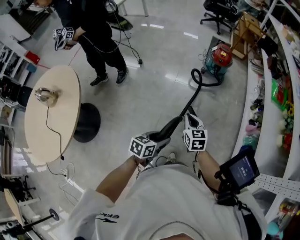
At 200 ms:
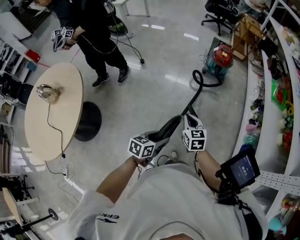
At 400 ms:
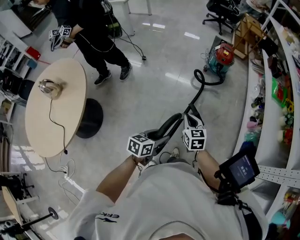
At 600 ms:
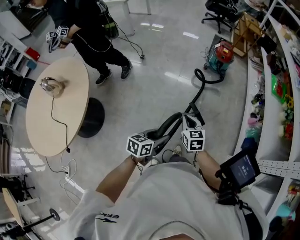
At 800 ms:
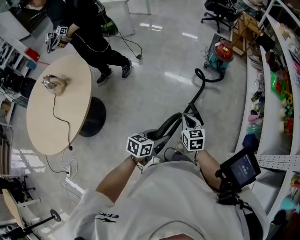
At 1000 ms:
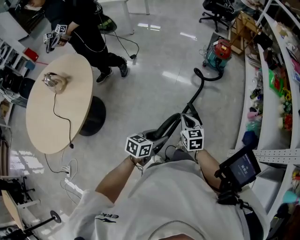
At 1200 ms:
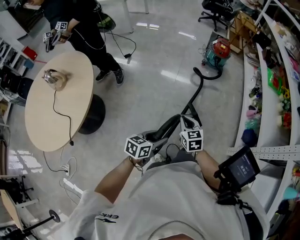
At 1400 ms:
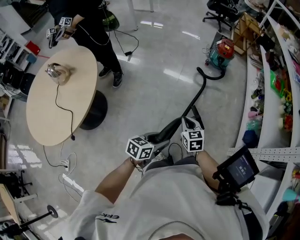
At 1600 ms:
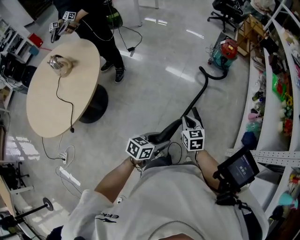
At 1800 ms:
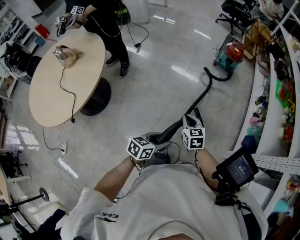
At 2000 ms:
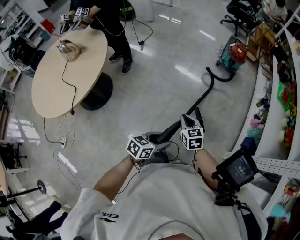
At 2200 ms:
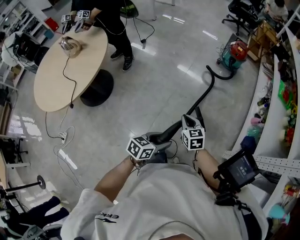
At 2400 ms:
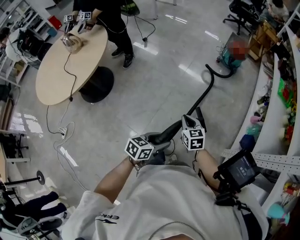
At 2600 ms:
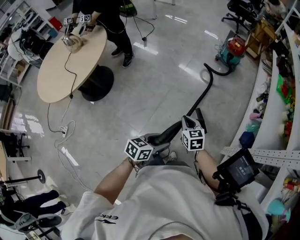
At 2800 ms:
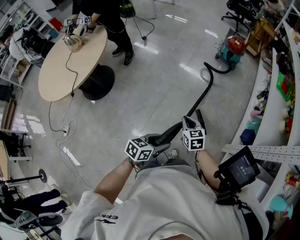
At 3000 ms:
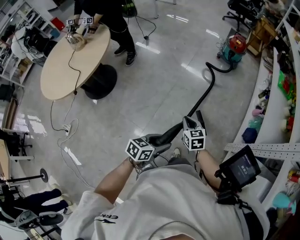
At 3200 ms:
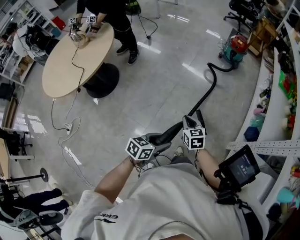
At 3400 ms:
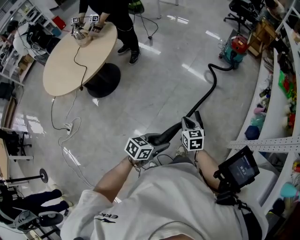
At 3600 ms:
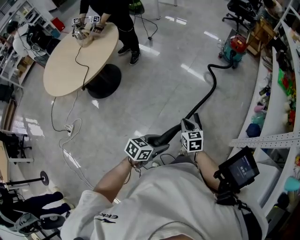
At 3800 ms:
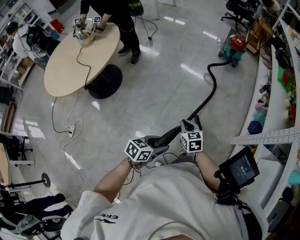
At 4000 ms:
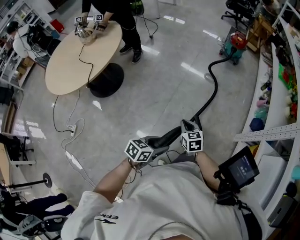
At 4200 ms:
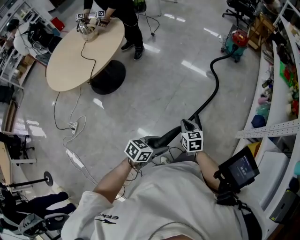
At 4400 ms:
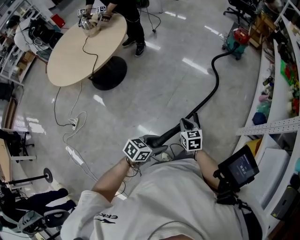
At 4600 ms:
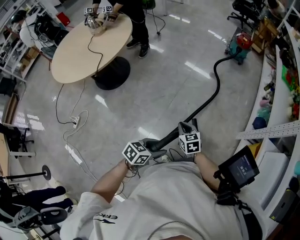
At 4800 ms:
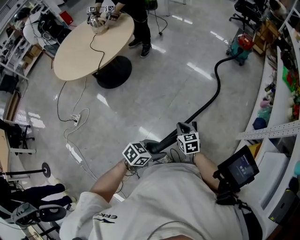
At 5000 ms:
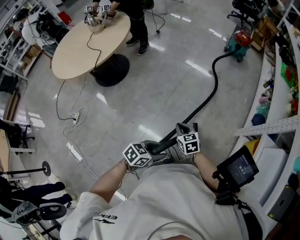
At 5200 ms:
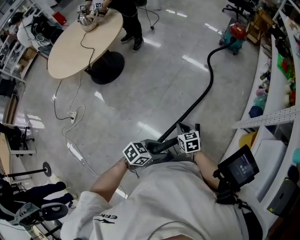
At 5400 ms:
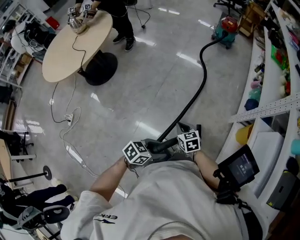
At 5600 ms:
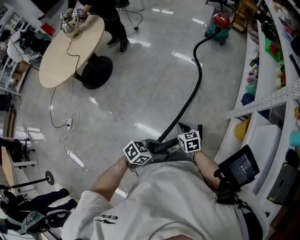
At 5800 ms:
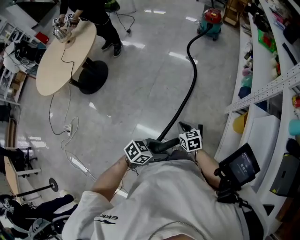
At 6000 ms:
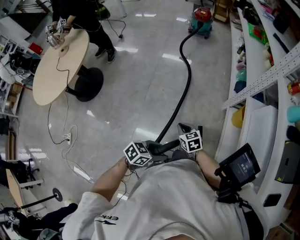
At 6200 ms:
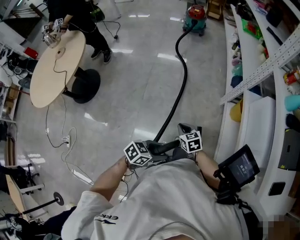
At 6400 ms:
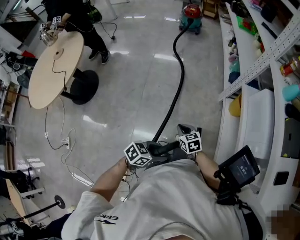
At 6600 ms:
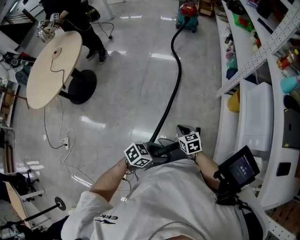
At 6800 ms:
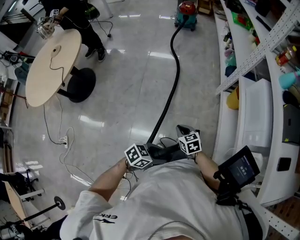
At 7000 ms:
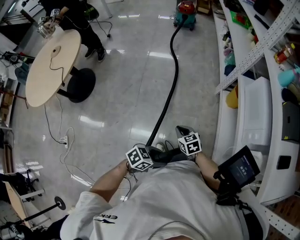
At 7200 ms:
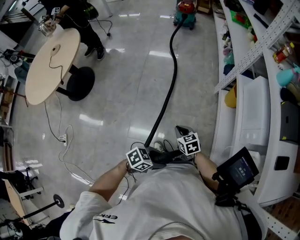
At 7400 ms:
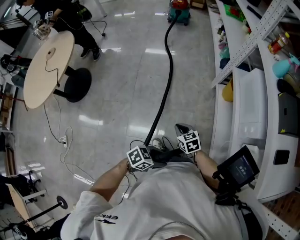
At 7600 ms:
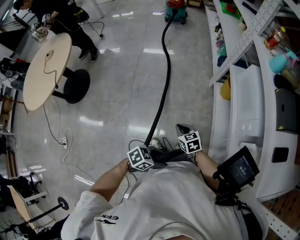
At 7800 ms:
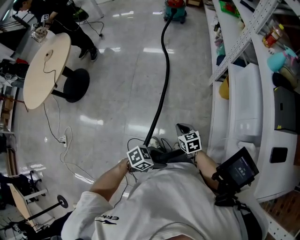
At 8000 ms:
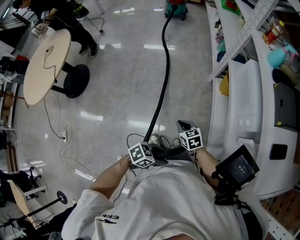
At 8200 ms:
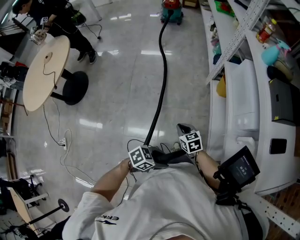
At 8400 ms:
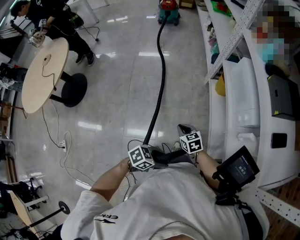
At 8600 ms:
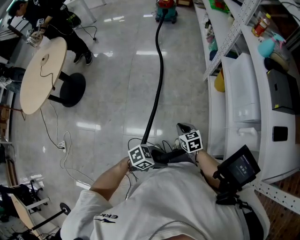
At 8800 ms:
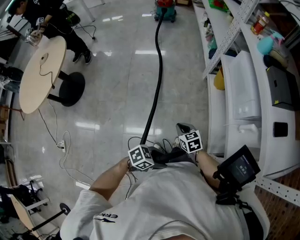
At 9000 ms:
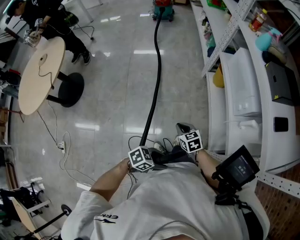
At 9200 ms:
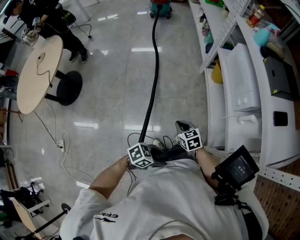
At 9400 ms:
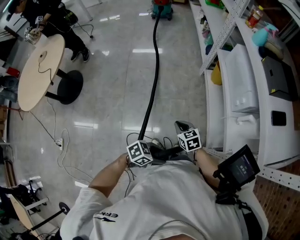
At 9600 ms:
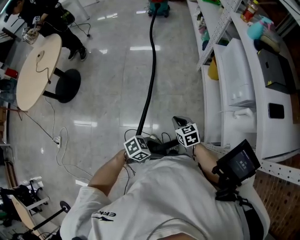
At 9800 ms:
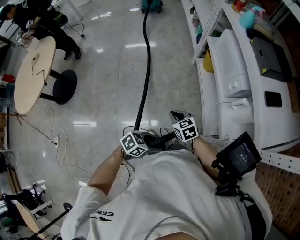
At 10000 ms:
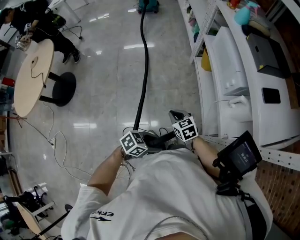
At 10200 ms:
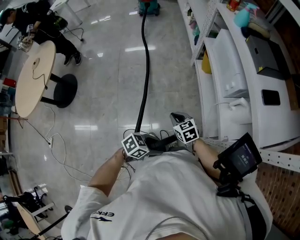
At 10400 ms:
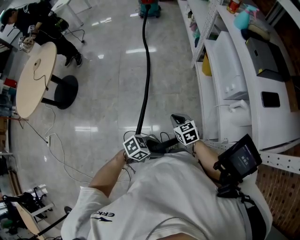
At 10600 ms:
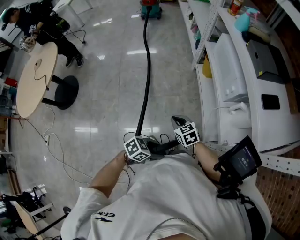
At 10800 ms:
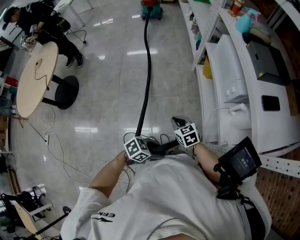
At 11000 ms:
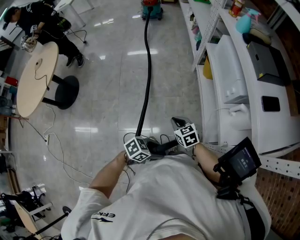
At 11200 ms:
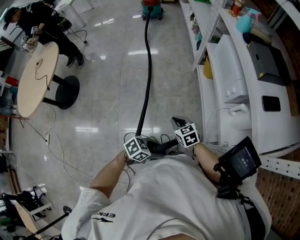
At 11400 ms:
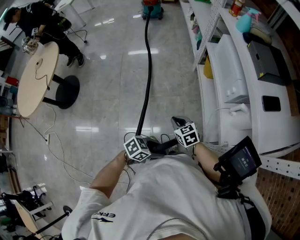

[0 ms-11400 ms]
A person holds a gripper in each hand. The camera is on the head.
0 ms to 1400 ms: Both grippers move backward, some 25 cm.
1400 ms to 2800 ms: Both grippers move to the right and backward, approximately 25 cm.
2800 ms to 4200 ms: The grippers both shift backward and to the left by some 25 cm.
4200 ms to 5600 ms: The two grippers go some 20 cm to the right and backward.
5600 ms to 7200 ms: The left gripper moves about 20 cm, and swivels about 30 degrees. The right gripper shifts by some 20 cm.
7200 ms to 8600 ms: The right gripper moves some 10 cm. The left gripper changes place by some 10 cm.
8600 ms to 10000 ms: The right gripper moves approximately 10 cm; the left gripper ends up about 5 cm from where it was.
10000 ms to 11400 ms: Both grippers stay about where they are.

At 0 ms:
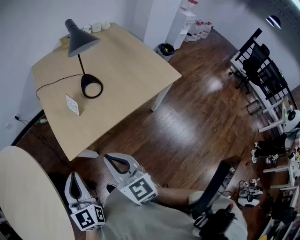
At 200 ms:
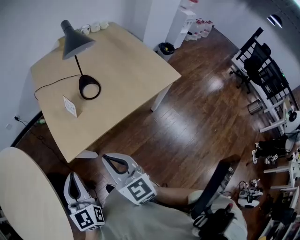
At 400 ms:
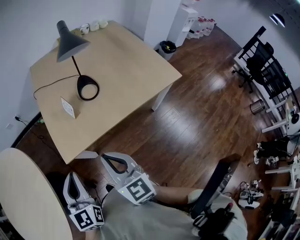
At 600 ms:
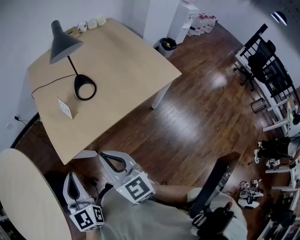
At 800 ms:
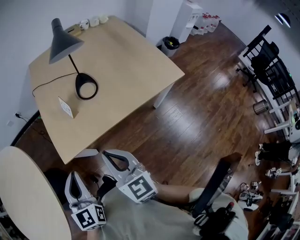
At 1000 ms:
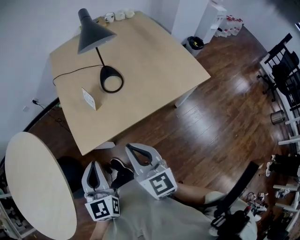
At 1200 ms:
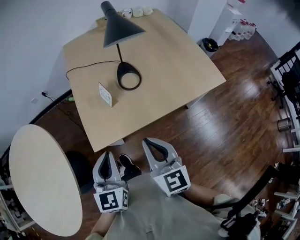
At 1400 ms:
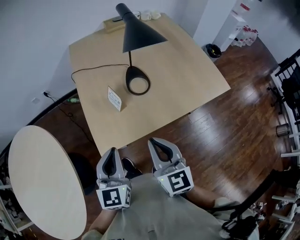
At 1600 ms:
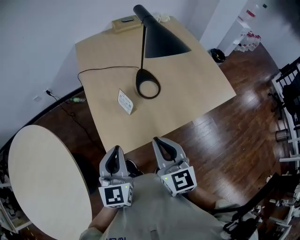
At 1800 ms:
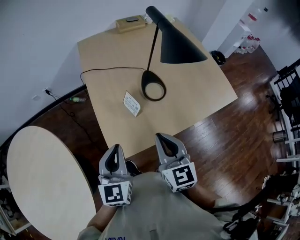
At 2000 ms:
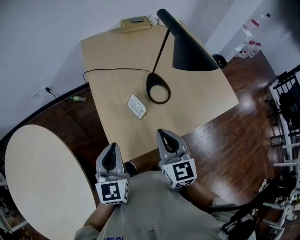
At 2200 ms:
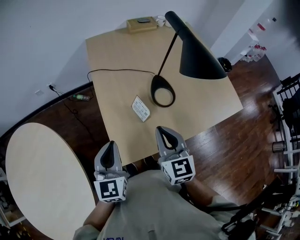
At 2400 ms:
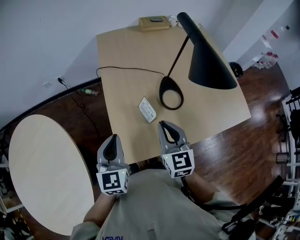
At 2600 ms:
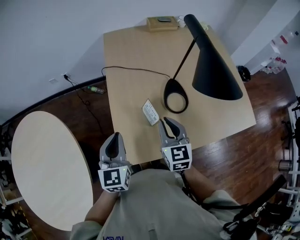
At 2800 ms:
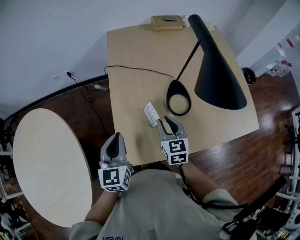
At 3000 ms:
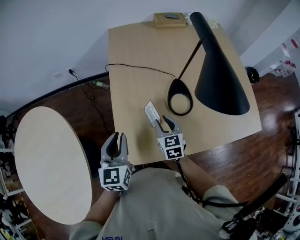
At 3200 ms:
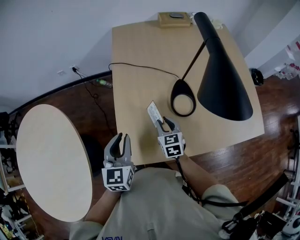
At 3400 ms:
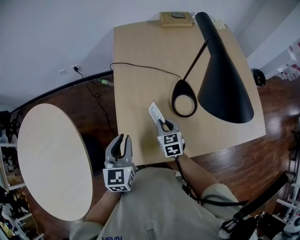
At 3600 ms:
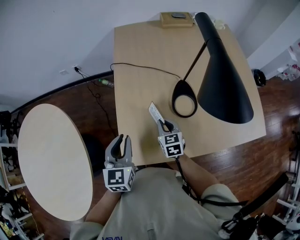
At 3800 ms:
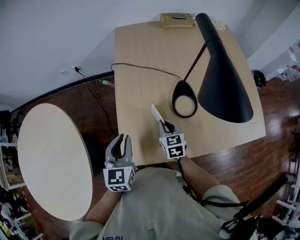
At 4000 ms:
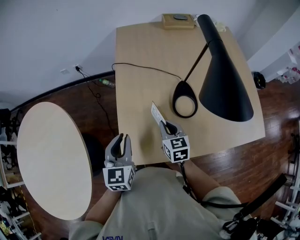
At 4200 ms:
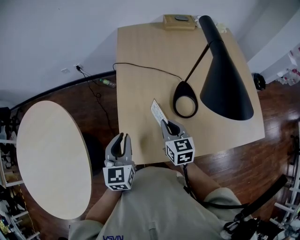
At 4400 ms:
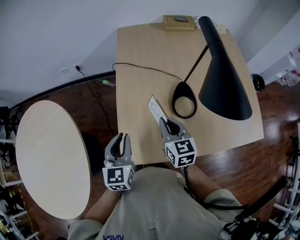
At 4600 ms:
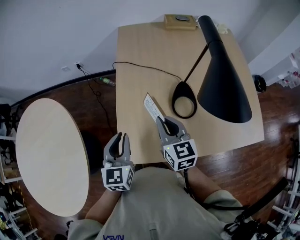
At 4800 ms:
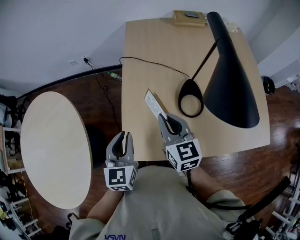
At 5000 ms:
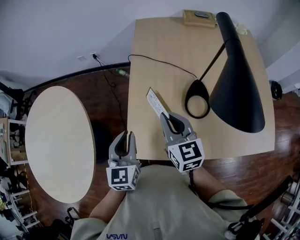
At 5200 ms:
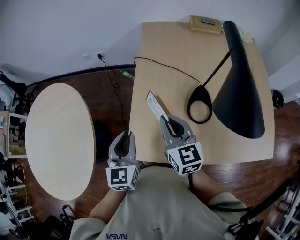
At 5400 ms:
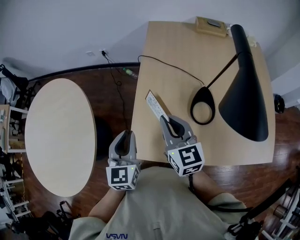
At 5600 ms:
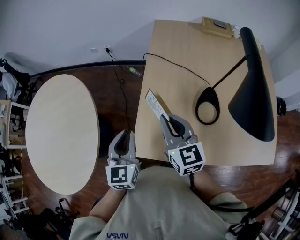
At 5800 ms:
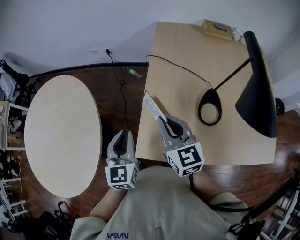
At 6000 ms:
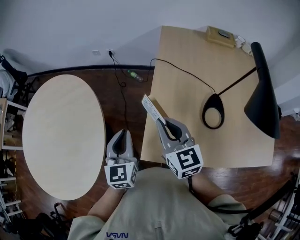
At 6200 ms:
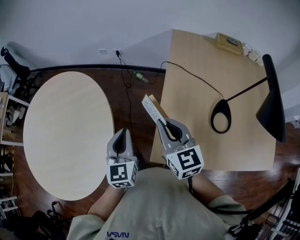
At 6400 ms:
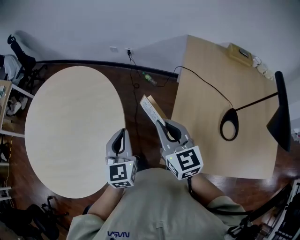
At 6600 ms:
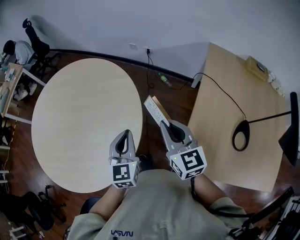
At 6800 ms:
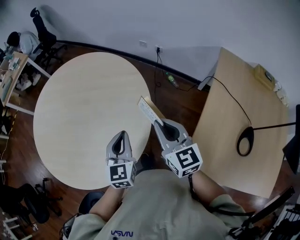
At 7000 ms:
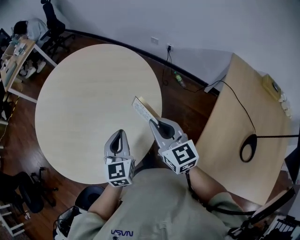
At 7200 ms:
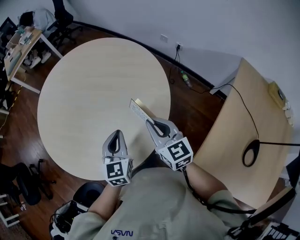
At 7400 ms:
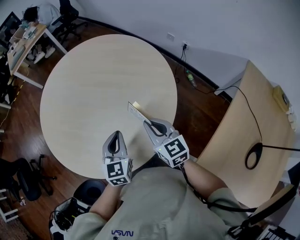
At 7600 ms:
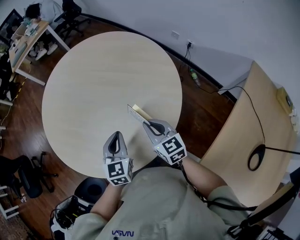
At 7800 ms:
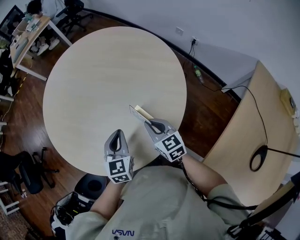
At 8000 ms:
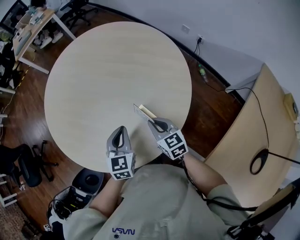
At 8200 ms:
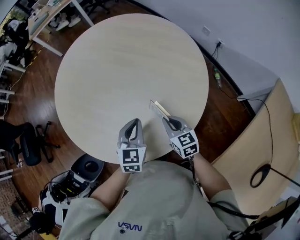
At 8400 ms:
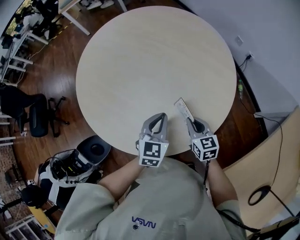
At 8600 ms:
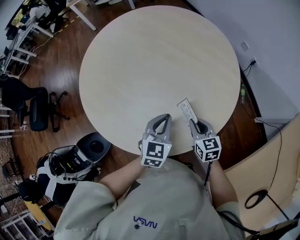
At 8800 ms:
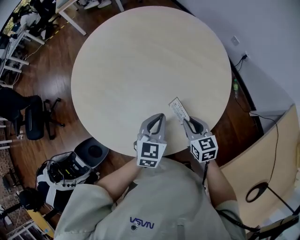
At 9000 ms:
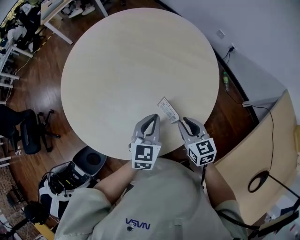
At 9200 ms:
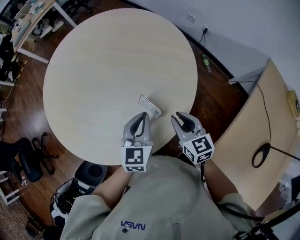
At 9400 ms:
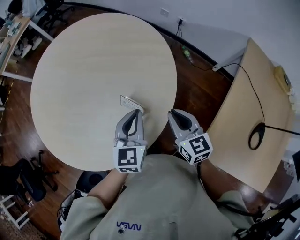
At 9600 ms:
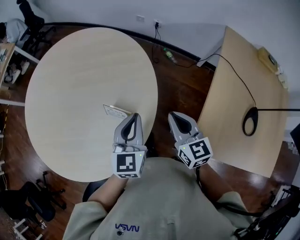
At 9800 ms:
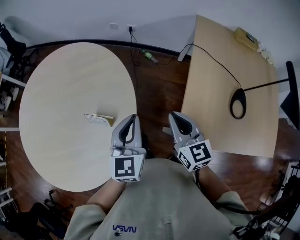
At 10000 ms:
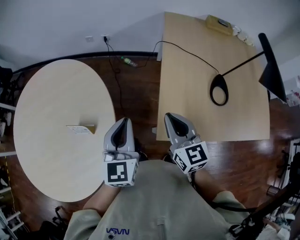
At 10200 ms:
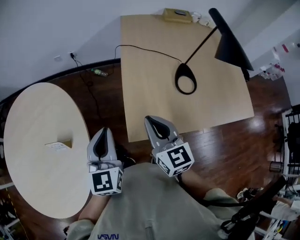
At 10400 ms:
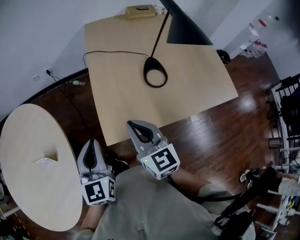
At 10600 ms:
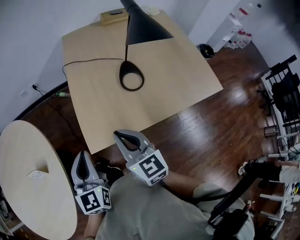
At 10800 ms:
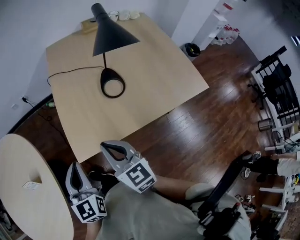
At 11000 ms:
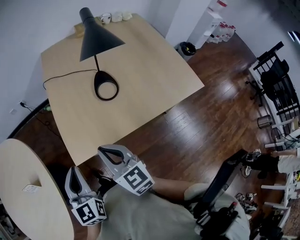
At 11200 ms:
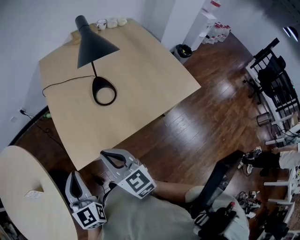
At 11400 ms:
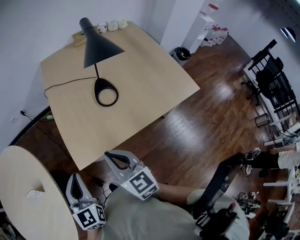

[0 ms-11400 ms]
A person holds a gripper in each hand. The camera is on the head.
0 ms to 1400 ms: Both grippers travel together forward, approximately 10 cm.
1400 ms to 2800 ms: The left gripper moves forward and to the left, roughly 20 cm, while the right gripper moves forward and downward, some 25 cm, and opens.
2800 ms to 4200 ms: The right gripper moves roughly 10 cm downward and comes back.
4200 ms to 5600 ms: The right gripper shifts approximately 15 cm upward and to the left, and turns by approximately 20 degrees. The left gripper goes roughly 5 cm to the left.
5600 ms to 7200 ms: Both grippers are carried approximately 50 cm. The left gripper changes its angle by approximately 30 degrees. The right gripper swivels some 40 degrees.
7200 ms to 8600 ms: The right gripper travels downward by about 15 cm, and rotates approximately 20 degrees. The left gripper shifts roughly 5 cm downward.
8600 ms to 10000 ms: The left gripper changes place by some 35 cm, and turns by some 50 degrees. Meanwhile the right gripper moves roughly 40 cm, and turns by about 60 degrees.
10000 ms to 11400 ms: Both grippers travel together to the right and backward, roughly 30 cm.

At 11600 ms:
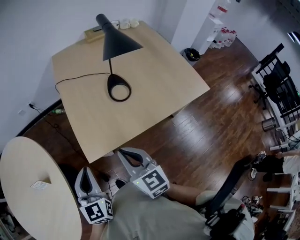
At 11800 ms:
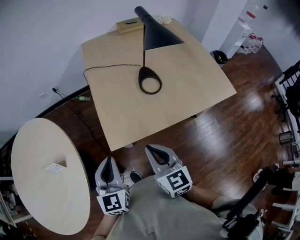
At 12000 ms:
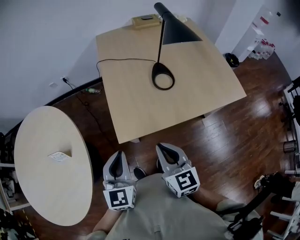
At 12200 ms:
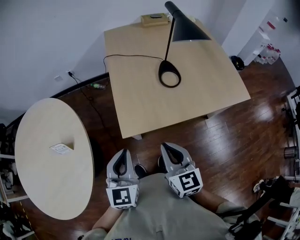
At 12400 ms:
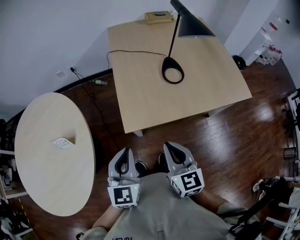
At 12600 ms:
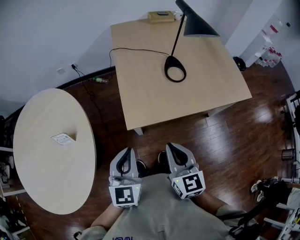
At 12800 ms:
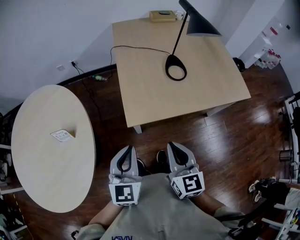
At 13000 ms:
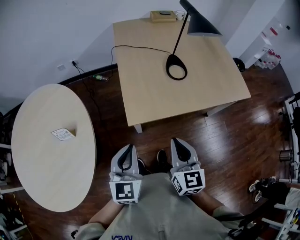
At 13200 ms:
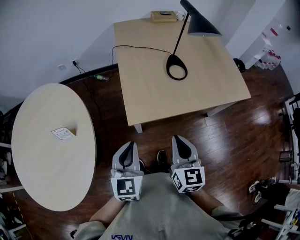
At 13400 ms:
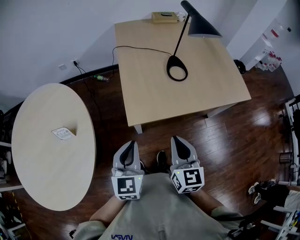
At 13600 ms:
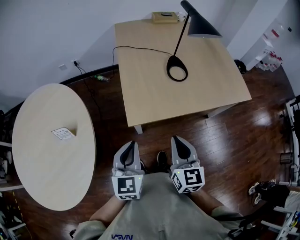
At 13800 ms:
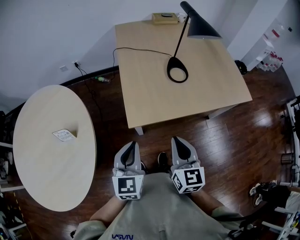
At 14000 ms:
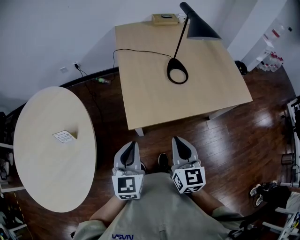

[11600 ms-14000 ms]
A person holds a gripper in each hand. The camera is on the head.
11600 ms to 12800 ms: The two grippers go about 10 cm backward and to the left.
12800 ms to 14000 ms: The grippers stay close to where they were, moving slightly.
